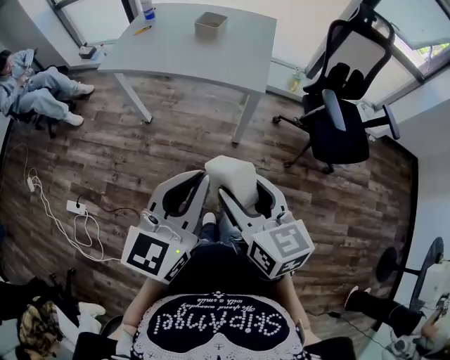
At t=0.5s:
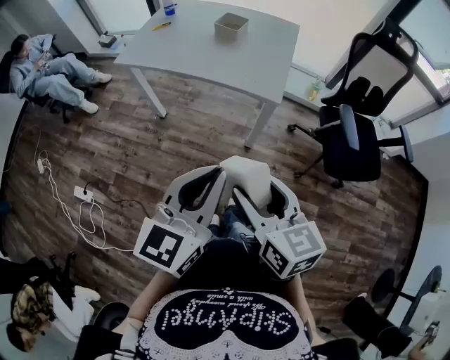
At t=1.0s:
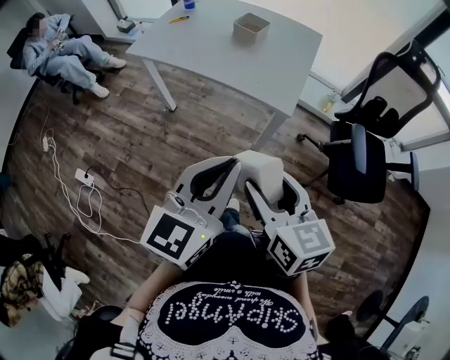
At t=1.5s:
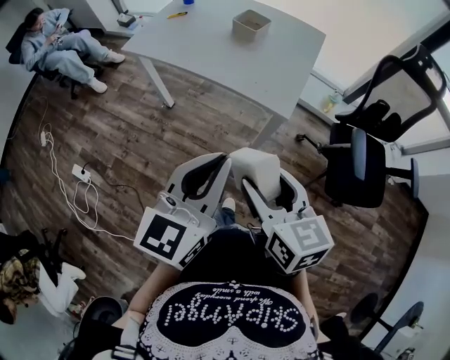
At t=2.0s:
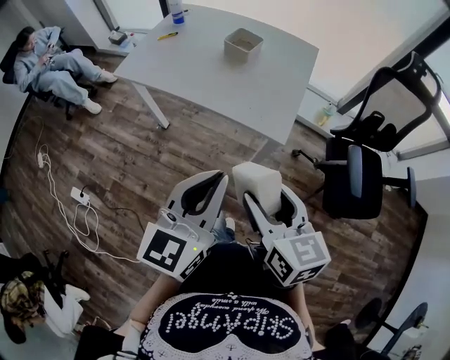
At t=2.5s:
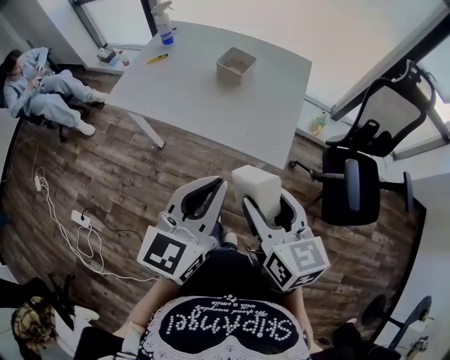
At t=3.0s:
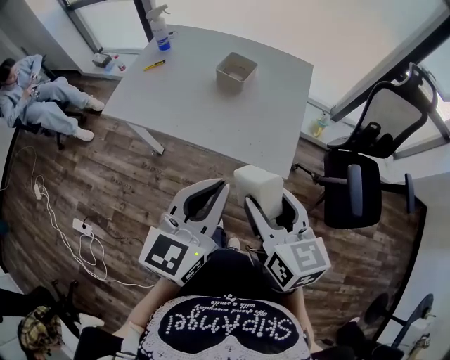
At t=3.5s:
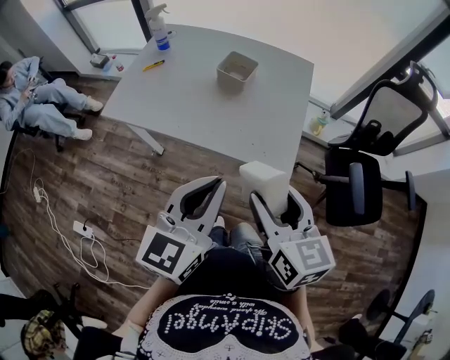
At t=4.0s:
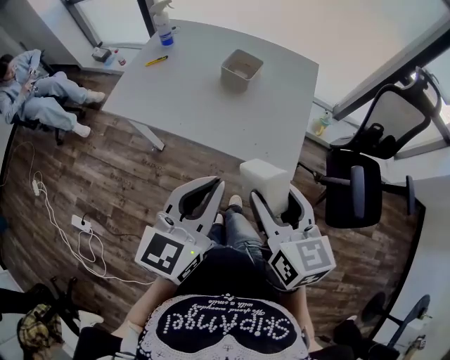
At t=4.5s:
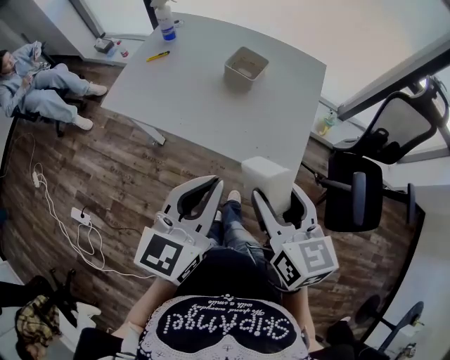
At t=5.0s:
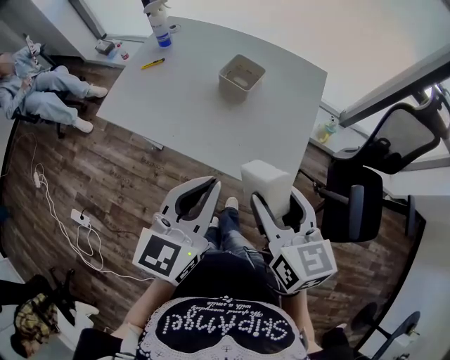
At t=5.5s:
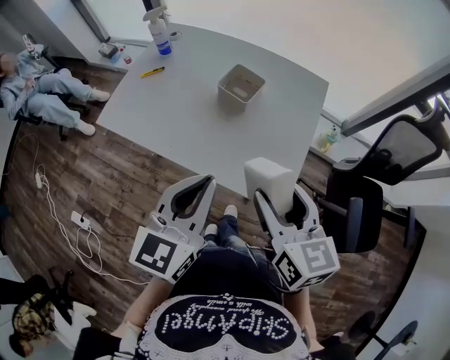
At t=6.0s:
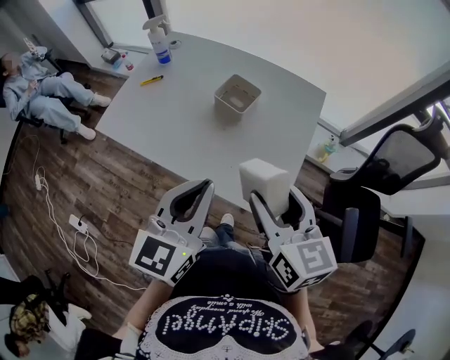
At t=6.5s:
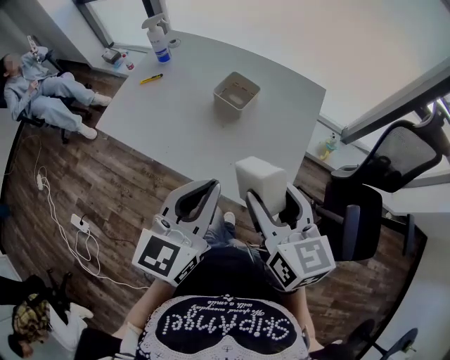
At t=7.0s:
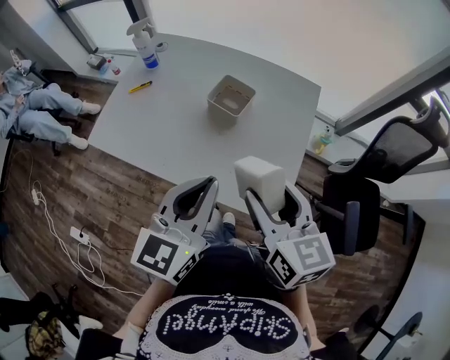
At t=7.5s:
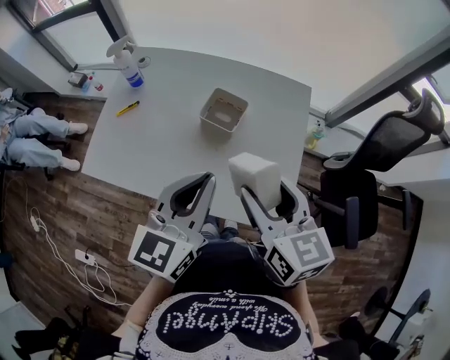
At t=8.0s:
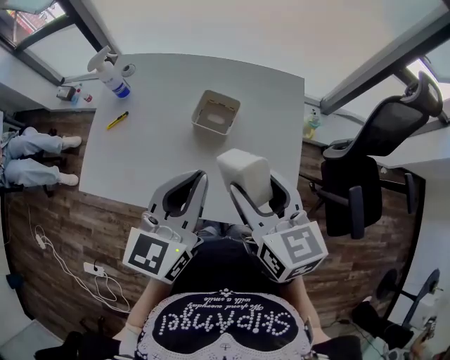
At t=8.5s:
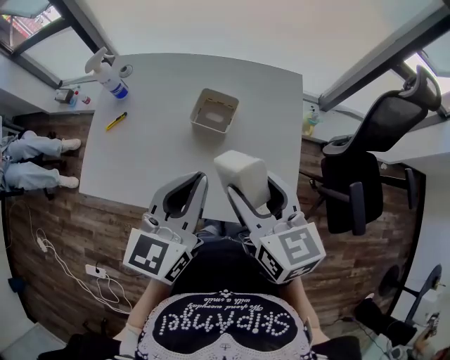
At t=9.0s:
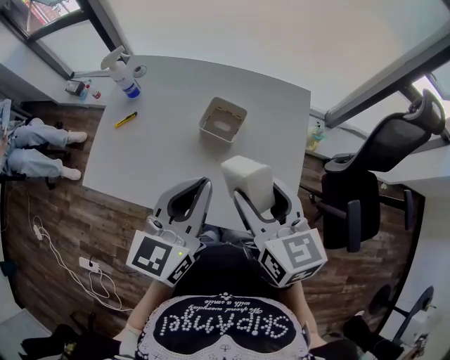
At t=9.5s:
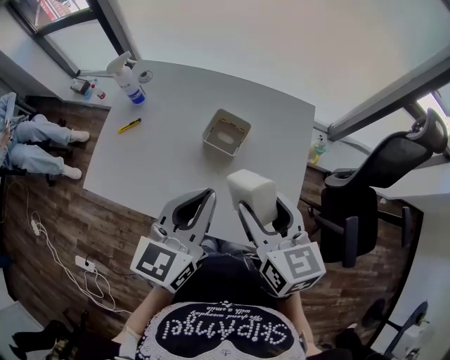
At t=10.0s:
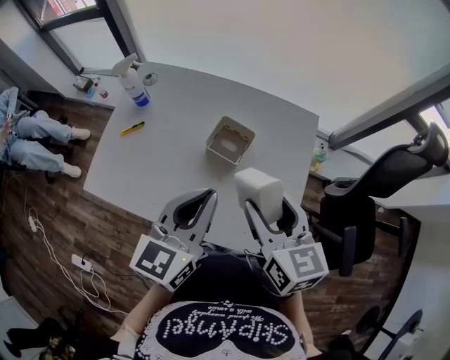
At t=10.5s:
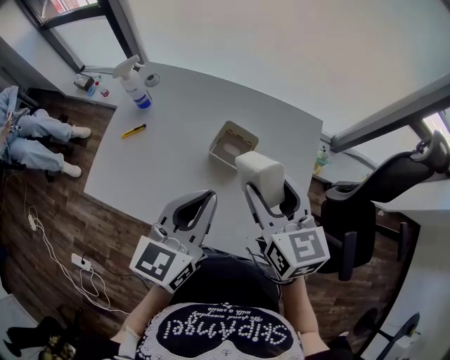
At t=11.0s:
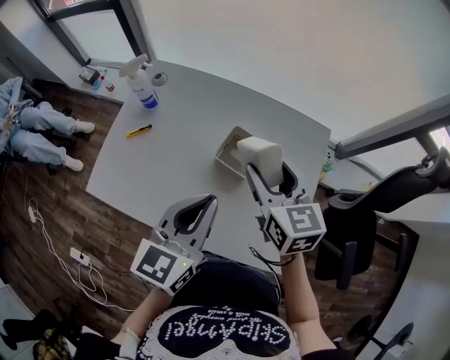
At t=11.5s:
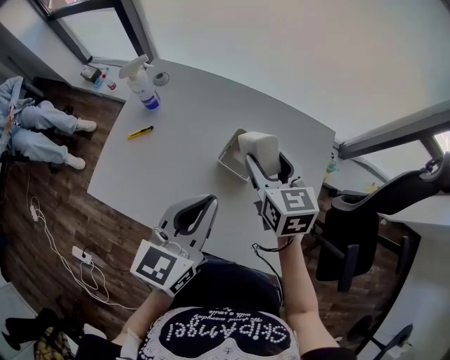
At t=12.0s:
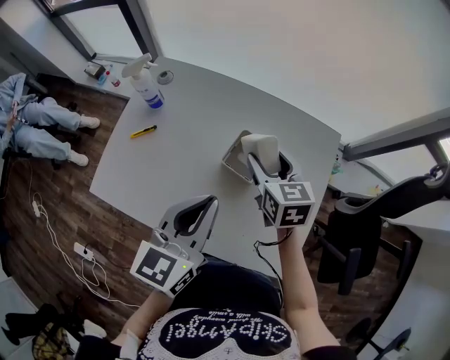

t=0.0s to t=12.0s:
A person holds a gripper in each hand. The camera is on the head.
t=0.0s to t=2.0s: The right gripper travels forward and to the right by some 20 cm. Meanwhile the left gripper heads forward, covering approximately 15 cm.
t=2.0s to t=4.0s: The right gripper goes some 10 cm forward. Meanwhile the left gripper heads forward and to the left, covering approximately 15 cm.
t=4.0s to t=6.0s: Both grippers travel together forward, about 10 cm.
t=6.0s to t=8.0s: The right gripper is displaced forward and to the left by about 10 cm, while the left gripper moves forward, roughly 15 cm.
t=8.0s to t=10.0s: The grippers stay close to where they were, moving slightly.
t=10.0s to t=12.0s: The left gripper shifts by roughly 5 cm. Meanwhile the right gripper moves forward and downward, approximately 20 cm.

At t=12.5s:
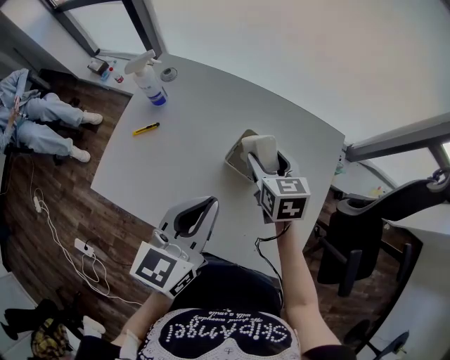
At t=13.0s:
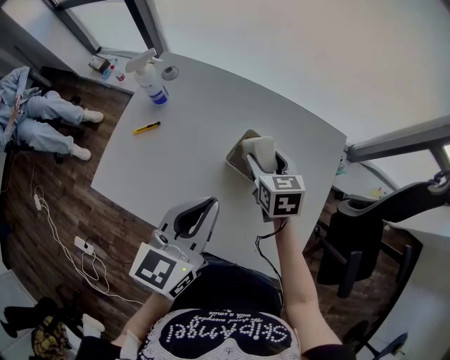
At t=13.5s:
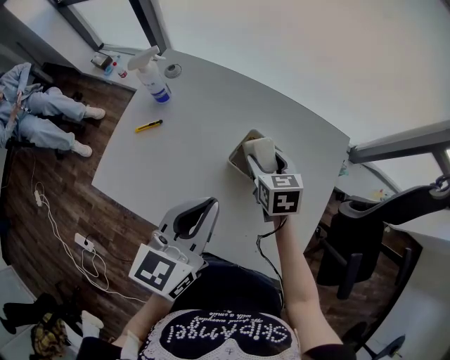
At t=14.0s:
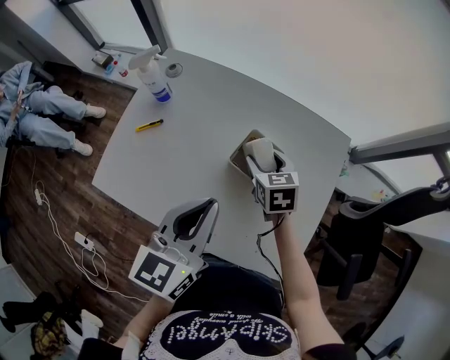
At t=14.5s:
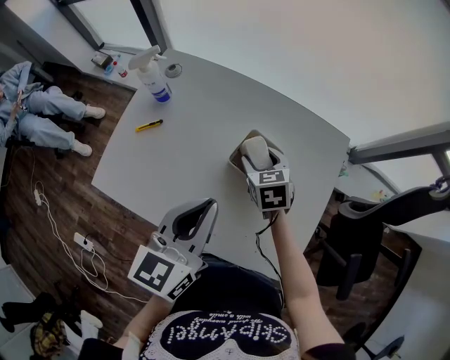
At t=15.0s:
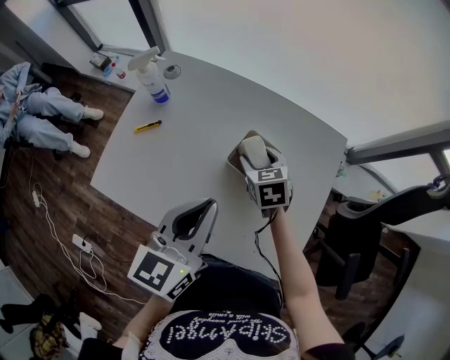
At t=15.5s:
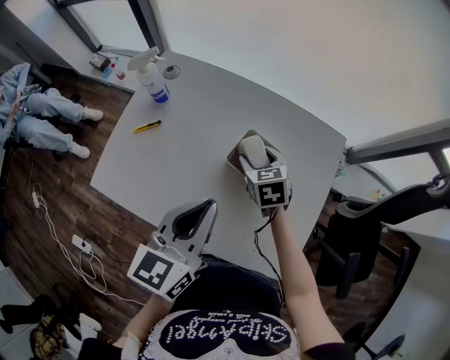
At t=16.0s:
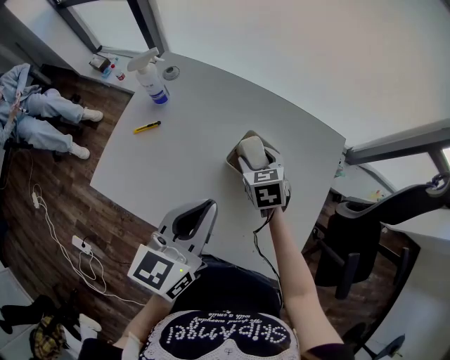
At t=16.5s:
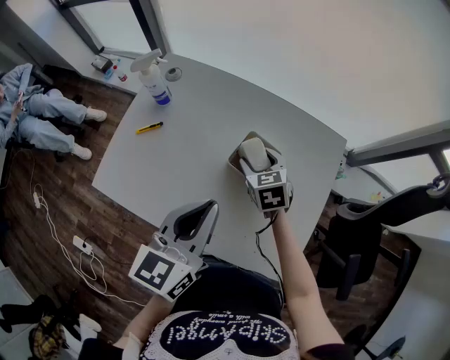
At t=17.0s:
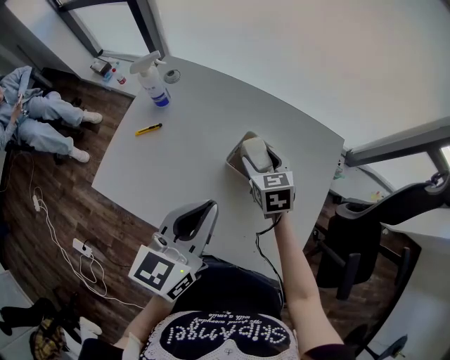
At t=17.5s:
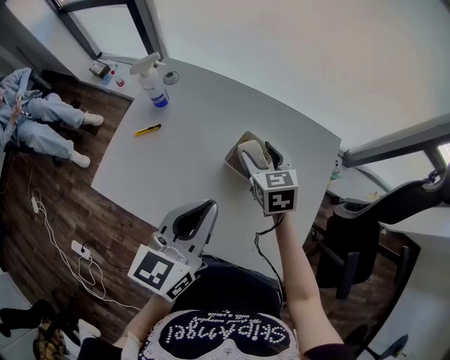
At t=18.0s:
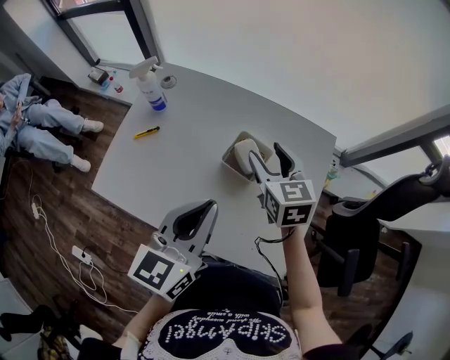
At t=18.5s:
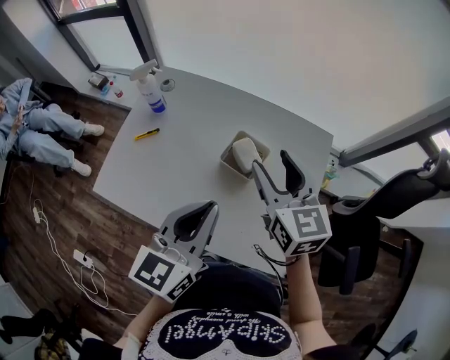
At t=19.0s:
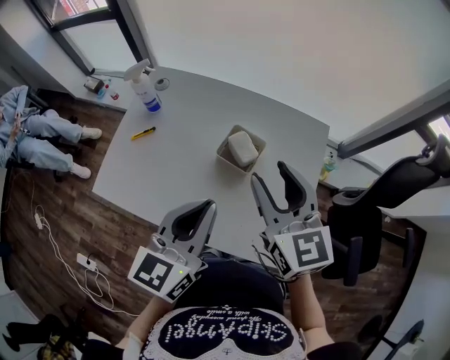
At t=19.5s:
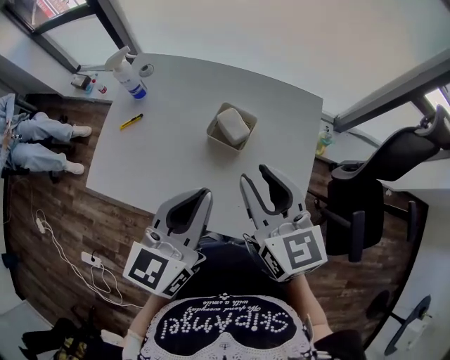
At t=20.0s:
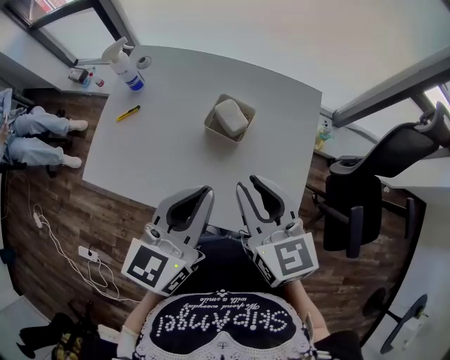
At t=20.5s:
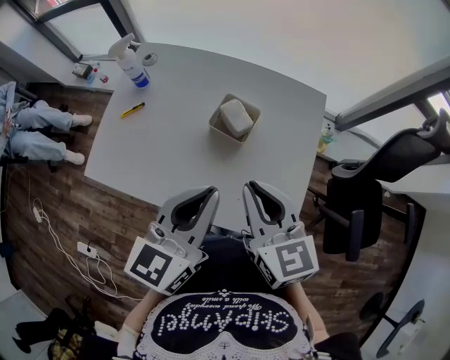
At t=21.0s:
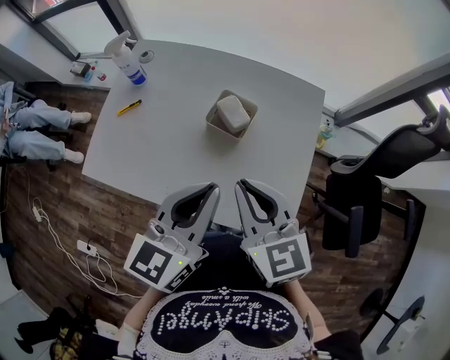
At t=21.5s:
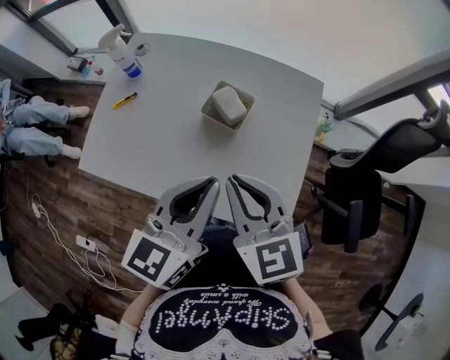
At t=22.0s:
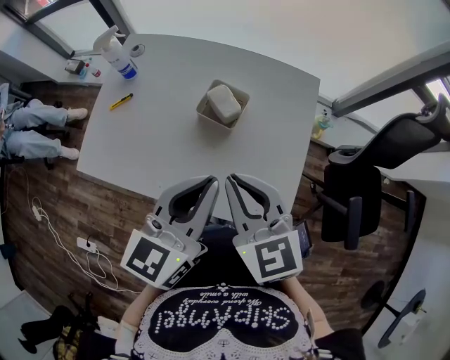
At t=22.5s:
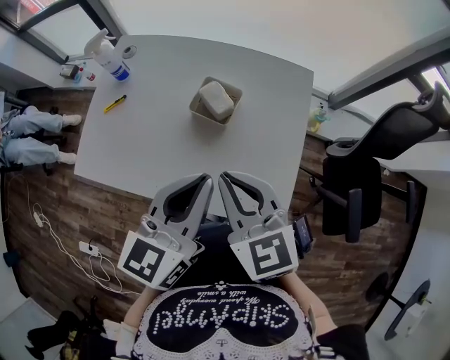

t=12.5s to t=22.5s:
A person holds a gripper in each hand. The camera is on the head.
t=12.5s to t=14.5s: The right gripper heads downward, covering some 5 cm.
t=14.5s to t=16.5s: Both grippers stay put.
t=16.5s to t=18.5s: The right gripper is displaced upward by about 20 cm, and turns by some 30 degrees.
t=18.5s to t=20.5s: The right gripper is displaced backward by about 15 cm, and closes its fingers.
t=20.5s to t=22.5s: The grippers move only a little.

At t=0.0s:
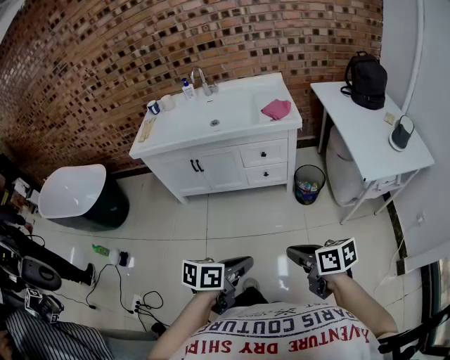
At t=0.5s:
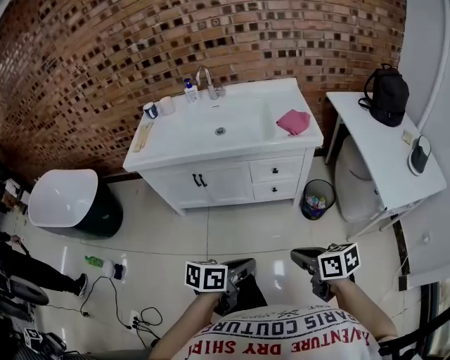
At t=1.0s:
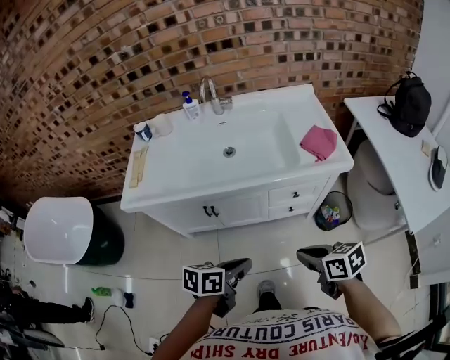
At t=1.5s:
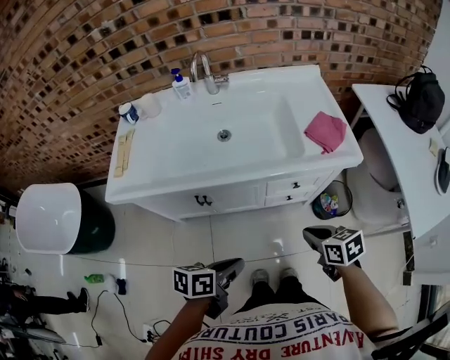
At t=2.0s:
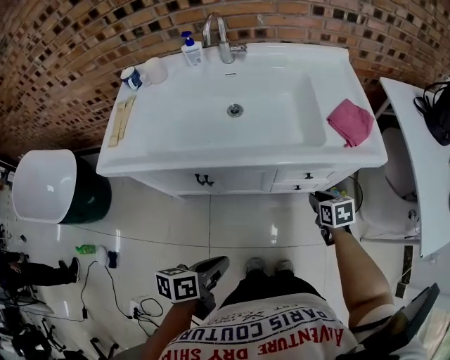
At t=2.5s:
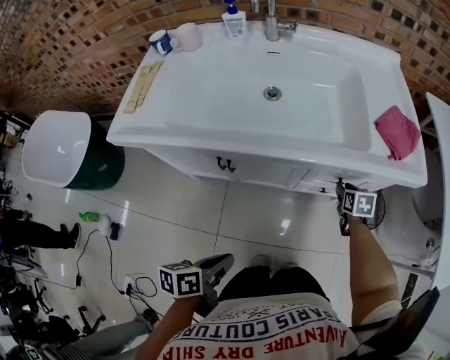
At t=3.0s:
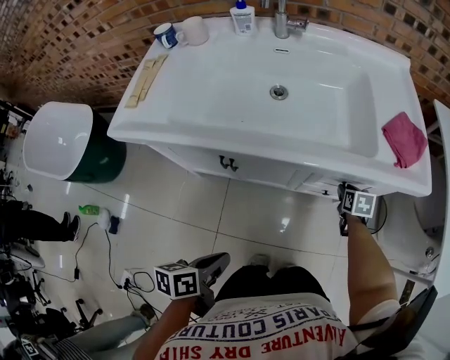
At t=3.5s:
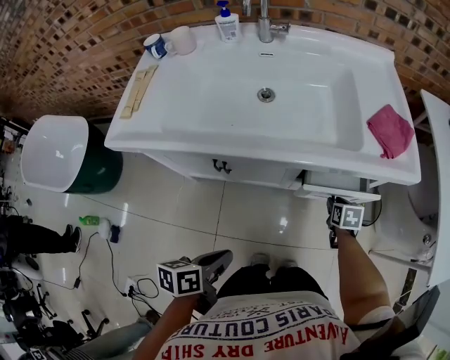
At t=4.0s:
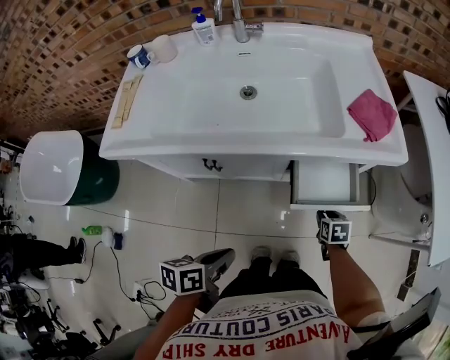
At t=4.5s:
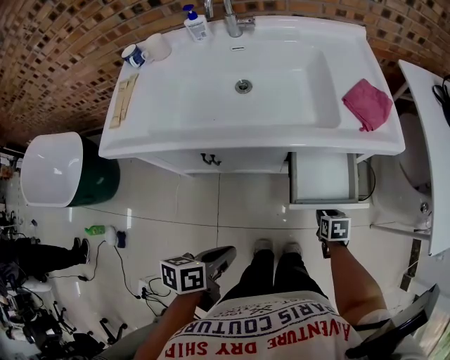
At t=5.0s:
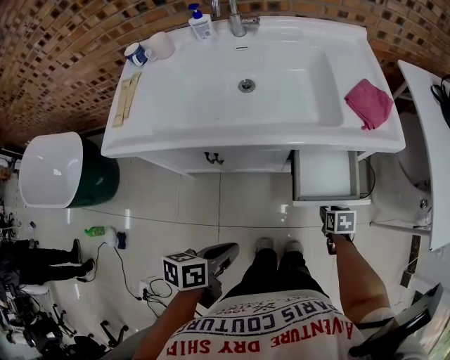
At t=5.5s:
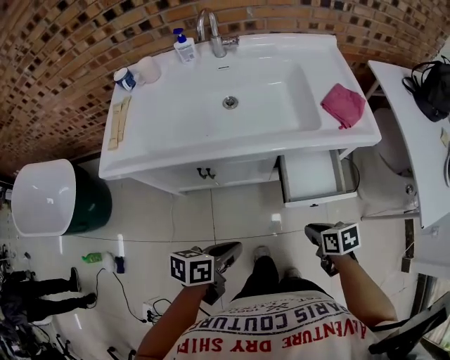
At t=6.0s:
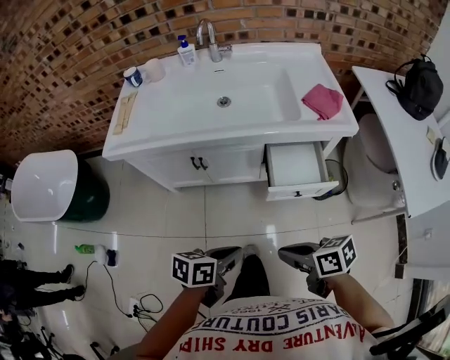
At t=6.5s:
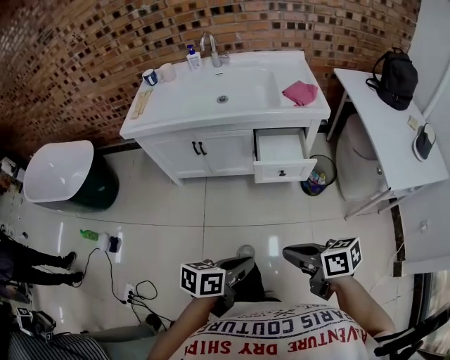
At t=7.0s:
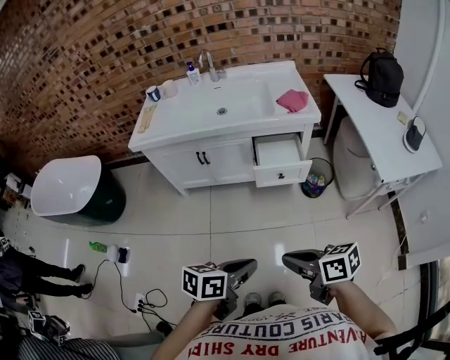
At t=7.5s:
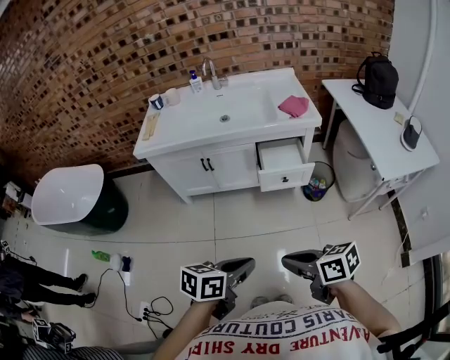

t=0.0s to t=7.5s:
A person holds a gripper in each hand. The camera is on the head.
t=0.0s to t=2.0s: Both grippers are carried forward, approximately 50 cm. The right gripper heads downward, covering approximately 25 cm, and swivels some 40 degrees.
t=2.0s to t=4.0s: The right gripper travels downward and backward by some 15 cm.
t=4.0s to t=5.5s: The right gripper is displaced upward, backward and to the left by roughly 20 cm.
t=5.5s to t=7.5s: The right gripper shifts by some 50 cm, and tips its fingers upward by about 30 degrees, while the left gripper moves about 40 cm.
